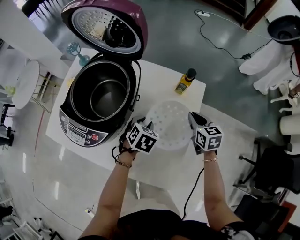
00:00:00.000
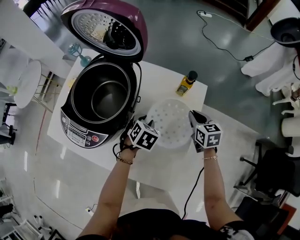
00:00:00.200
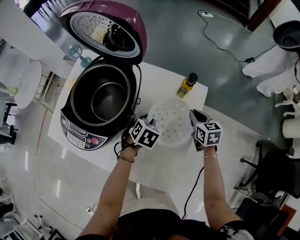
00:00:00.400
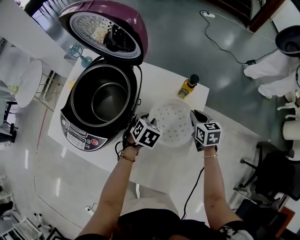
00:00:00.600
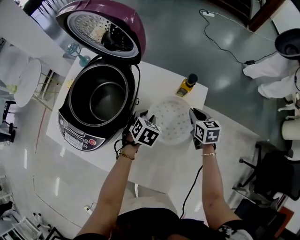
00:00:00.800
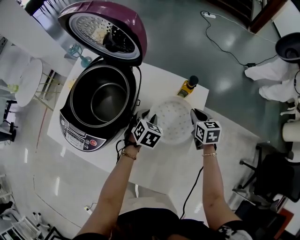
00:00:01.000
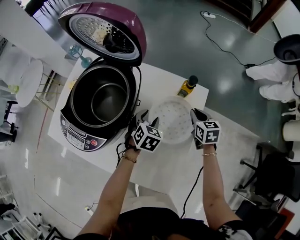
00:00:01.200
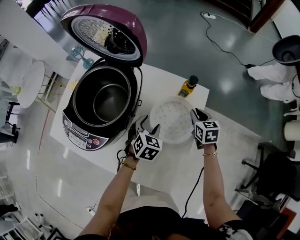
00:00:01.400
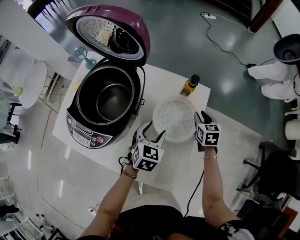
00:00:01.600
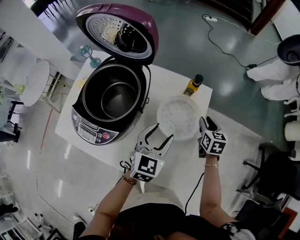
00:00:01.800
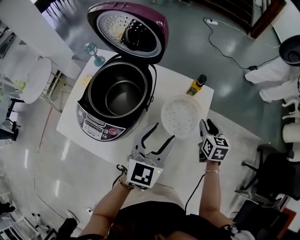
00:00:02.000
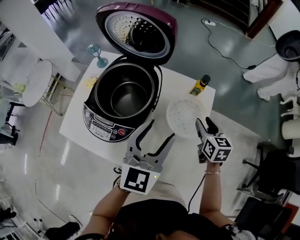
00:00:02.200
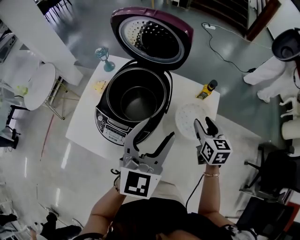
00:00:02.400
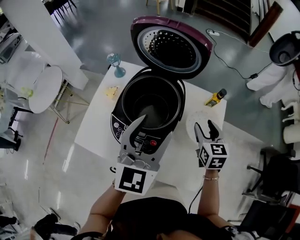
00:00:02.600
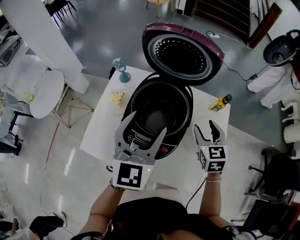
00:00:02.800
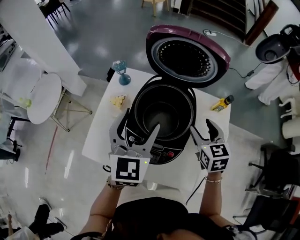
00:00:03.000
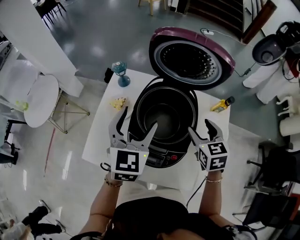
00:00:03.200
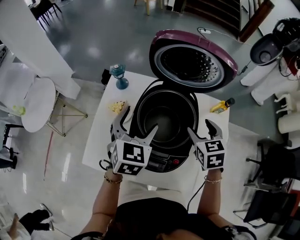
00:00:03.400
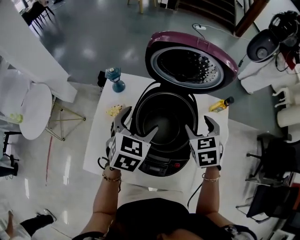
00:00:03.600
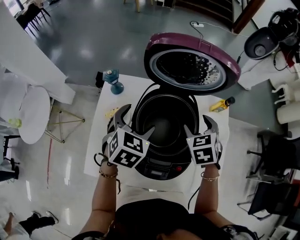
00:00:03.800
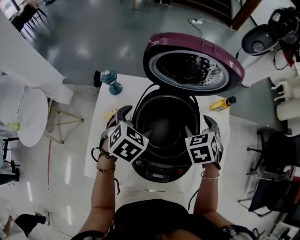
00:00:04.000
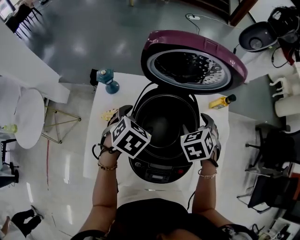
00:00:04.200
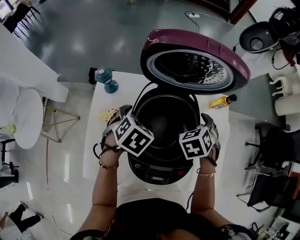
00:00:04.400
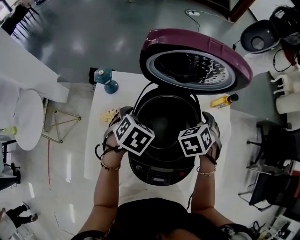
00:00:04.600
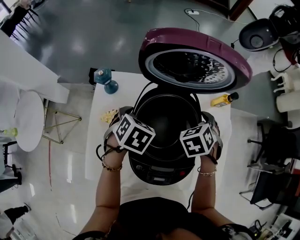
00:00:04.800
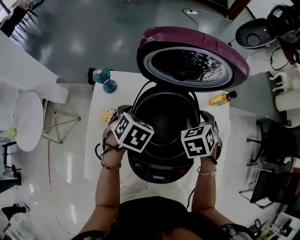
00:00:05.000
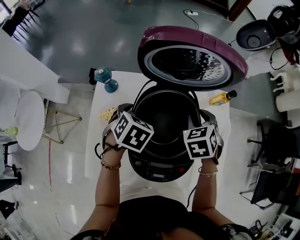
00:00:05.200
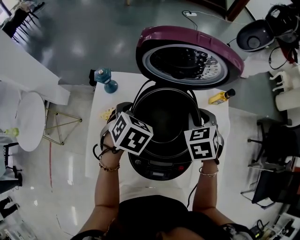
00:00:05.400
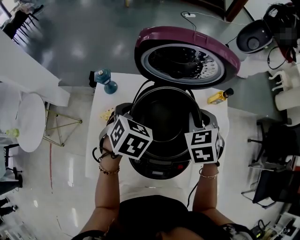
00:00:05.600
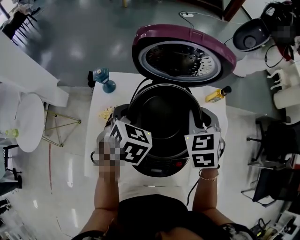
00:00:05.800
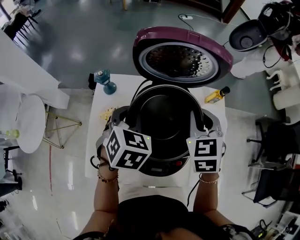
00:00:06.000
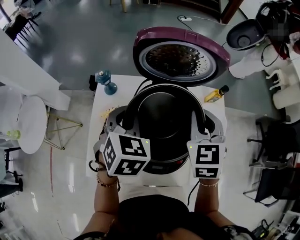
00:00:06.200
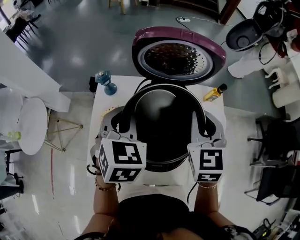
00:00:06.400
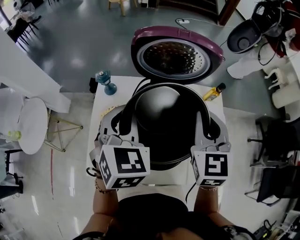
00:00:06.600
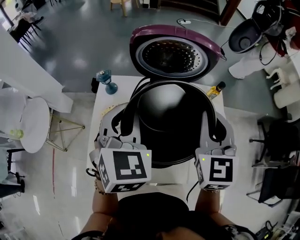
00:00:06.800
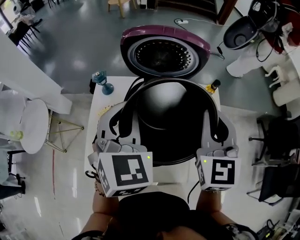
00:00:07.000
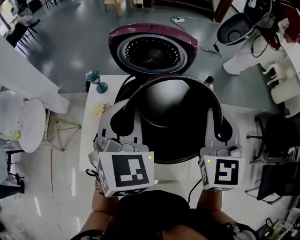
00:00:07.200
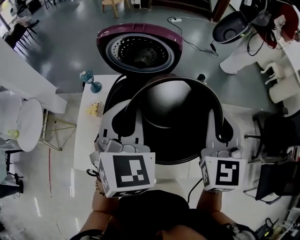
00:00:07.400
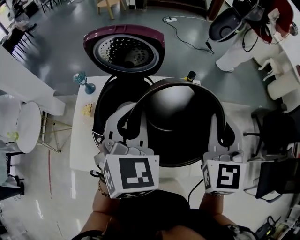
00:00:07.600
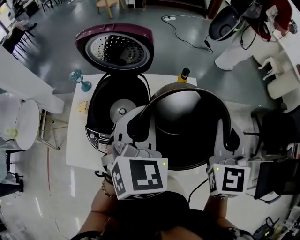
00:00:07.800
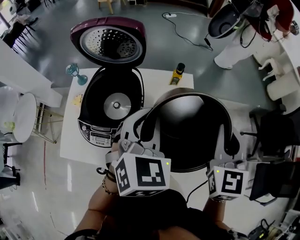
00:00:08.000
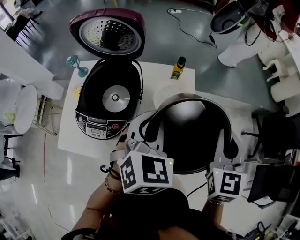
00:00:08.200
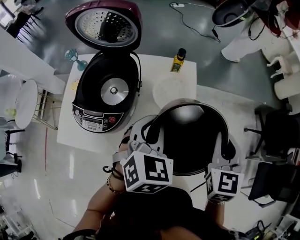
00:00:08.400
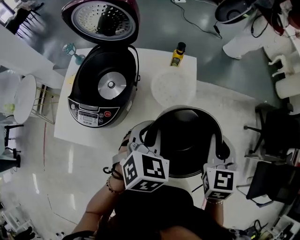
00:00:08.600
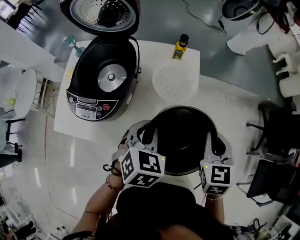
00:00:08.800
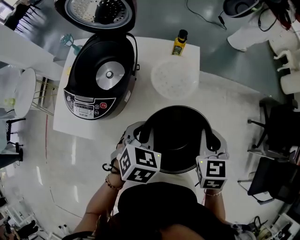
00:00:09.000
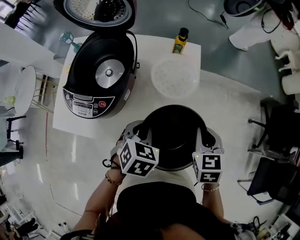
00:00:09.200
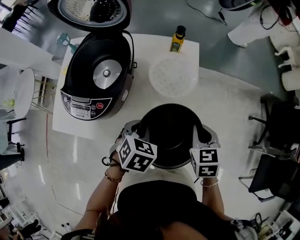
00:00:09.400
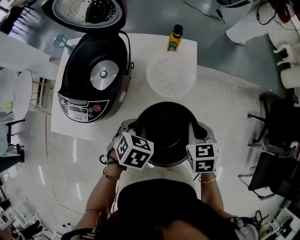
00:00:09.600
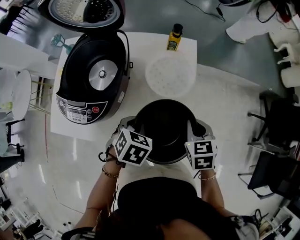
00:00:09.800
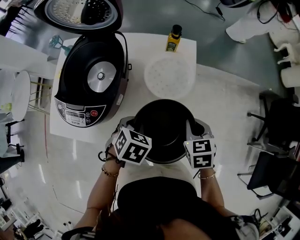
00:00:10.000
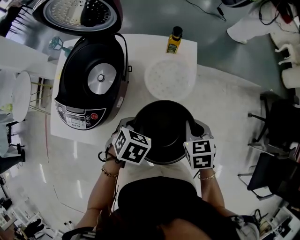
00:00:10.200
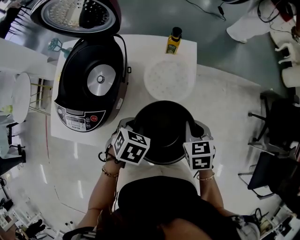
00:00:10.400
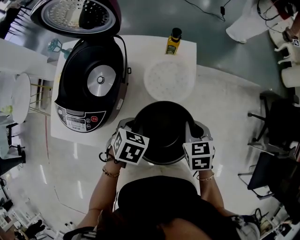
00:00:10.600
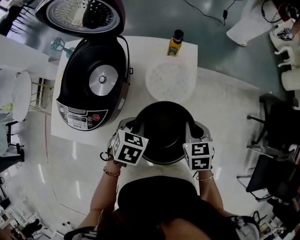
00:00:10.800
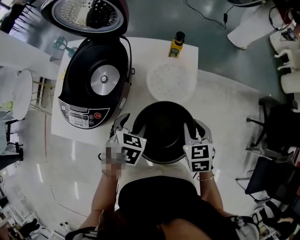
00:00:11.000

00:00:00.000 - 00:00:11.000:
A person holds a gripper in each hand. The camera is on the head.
00:00:00.000 - 00:00:01.600: The left gripper moves about 5 cm forward and comes back, while the right gripper shifts by about 5 cm.
00:00:01.600 - 00:00:03.200: Both grippers travel together to the left and upward, about 35 cm. The right gripper opens its fingers. Meanwhile the left gripper changes its angle by about 20 degrees.
00:00:03.200 - 00:00:04.800: The right gripper ends up approximately 10 cm from where it was, and rotates roughly 40 degrees. The left gripper moves downward, about 15 cm, and angles its fingers downward, by some 40 degrees.
00:00:04.800 - 00:00:06.200: Both grippers travel together upward, roughly 15 cm. The left gripper changes its angle by roughly 20 degrees, and closes its fingers. Meanwhile the right gripper tilts its fingers some 30 degrees upward, and closes its fingers.
00:00:06.200 - 00:00:07.800: The right gripper is displaced to the right and backward by approximately 30 cm; the left gripper goes about 25 cm to the right and upward.
00:00:07.800 - 00:00:09.400: The grippers both shift downward by roughly 30 cm. The left gripper tips its fingers downward by about 40 degrees, while the right gripper tilts its fingers roughly 40 degrees downward.
00:00:09.400 - 00:00:11.000: The left gripper shifts by approximately 5 cm, and opens its fingers.

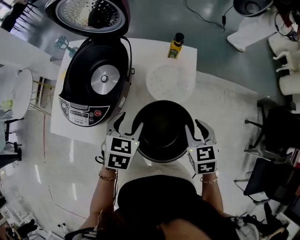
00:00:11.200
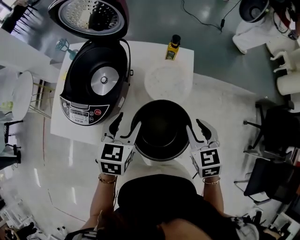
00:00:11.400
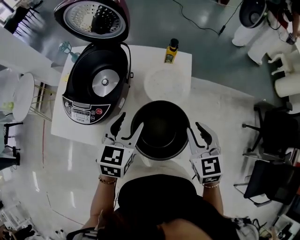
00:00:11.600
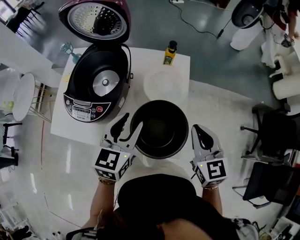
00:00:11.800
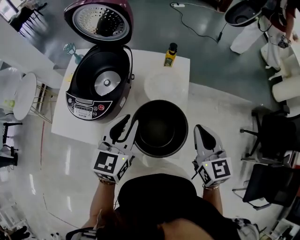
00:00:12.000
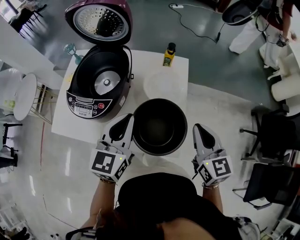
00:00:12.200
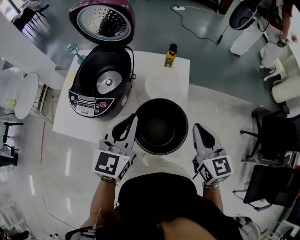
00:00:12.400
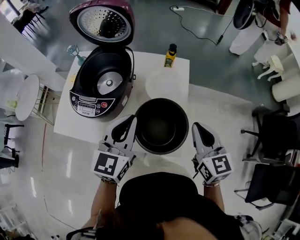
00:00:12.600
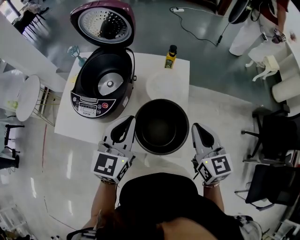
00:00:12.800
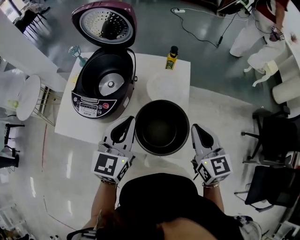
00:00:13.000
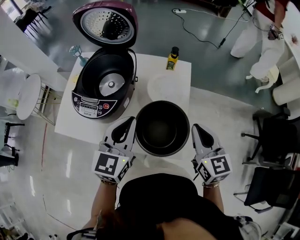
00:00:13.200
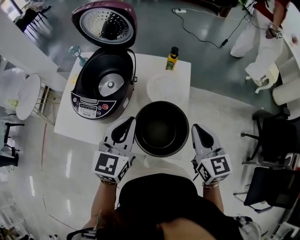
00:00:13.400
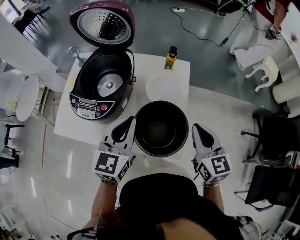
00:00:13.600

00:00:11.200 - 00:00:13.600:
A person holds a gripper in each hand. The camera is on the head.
00:00:11.200 - 00:00:12.400: The grippers both shift upward by approximately 15 cm. The left gripper points its fingers approximately 40 degrees further upward, and closes its fingers. The right gripper swivels about 30 degrees.
00:00:12.400 - 00:00:13.600: The grippers stay close to where they were, moving slightly.

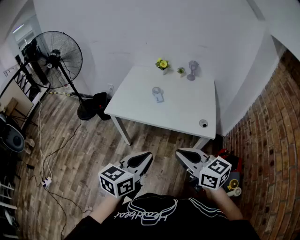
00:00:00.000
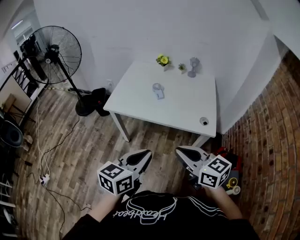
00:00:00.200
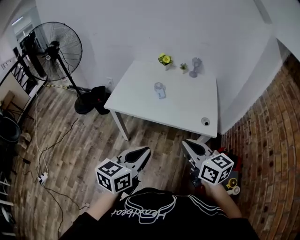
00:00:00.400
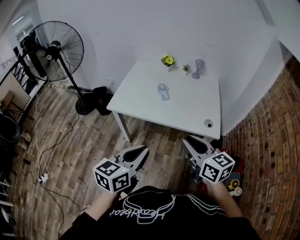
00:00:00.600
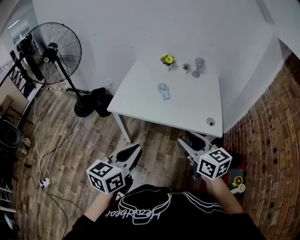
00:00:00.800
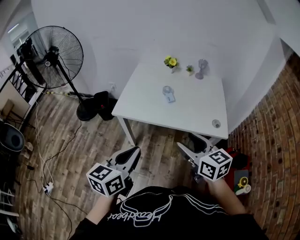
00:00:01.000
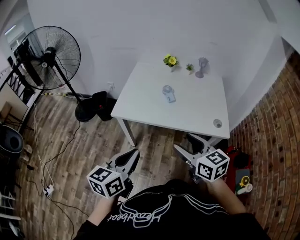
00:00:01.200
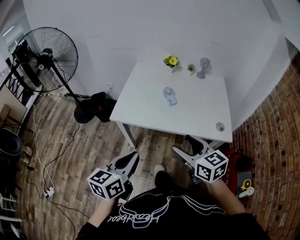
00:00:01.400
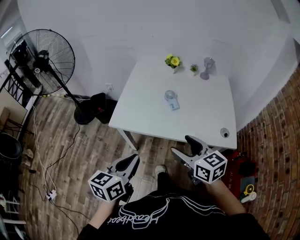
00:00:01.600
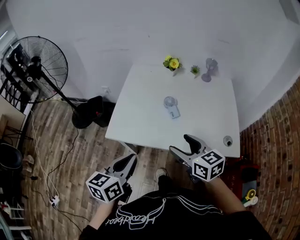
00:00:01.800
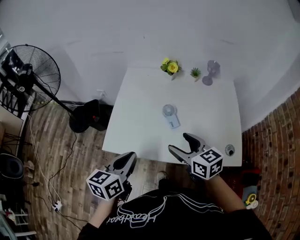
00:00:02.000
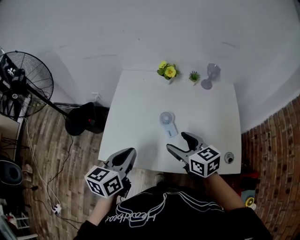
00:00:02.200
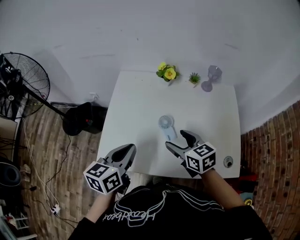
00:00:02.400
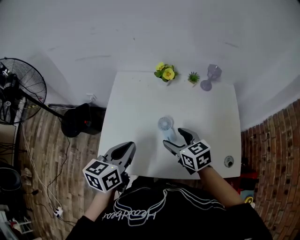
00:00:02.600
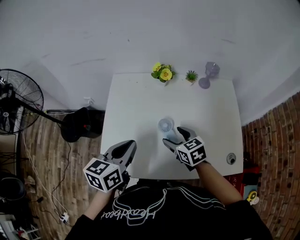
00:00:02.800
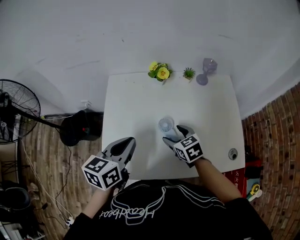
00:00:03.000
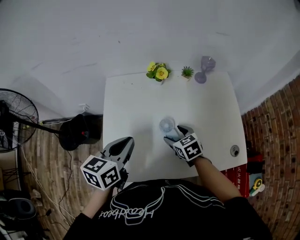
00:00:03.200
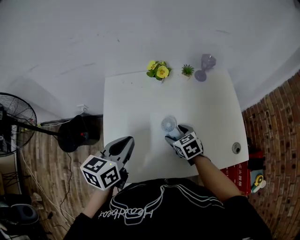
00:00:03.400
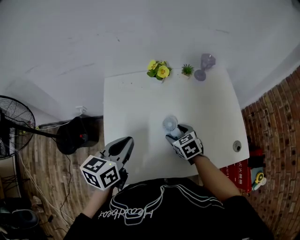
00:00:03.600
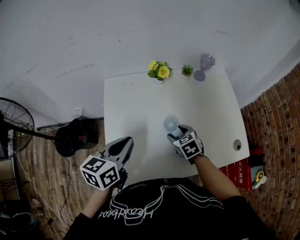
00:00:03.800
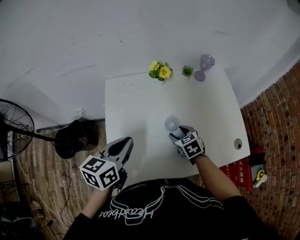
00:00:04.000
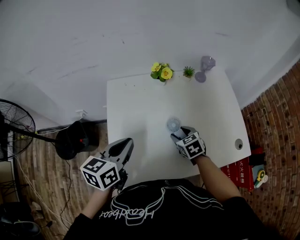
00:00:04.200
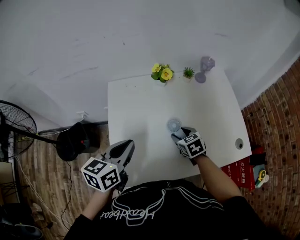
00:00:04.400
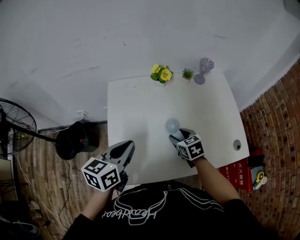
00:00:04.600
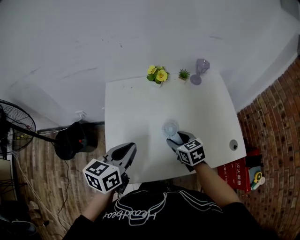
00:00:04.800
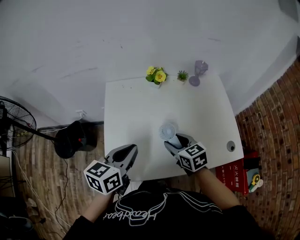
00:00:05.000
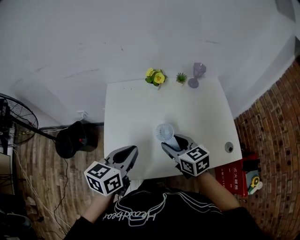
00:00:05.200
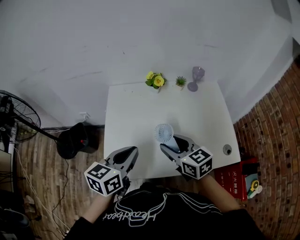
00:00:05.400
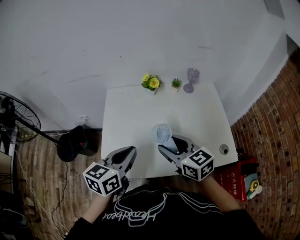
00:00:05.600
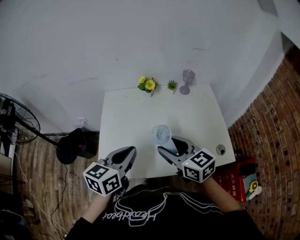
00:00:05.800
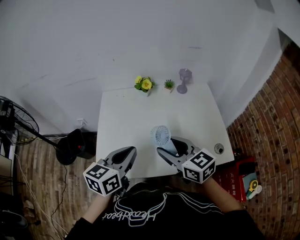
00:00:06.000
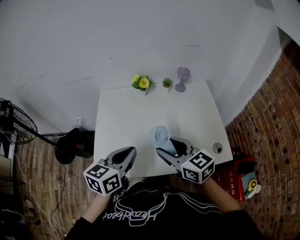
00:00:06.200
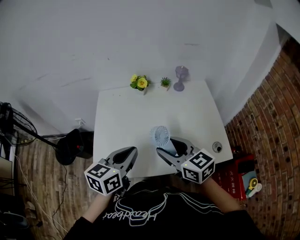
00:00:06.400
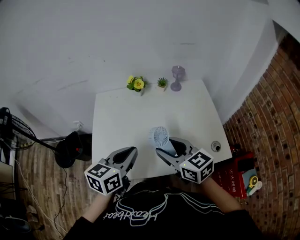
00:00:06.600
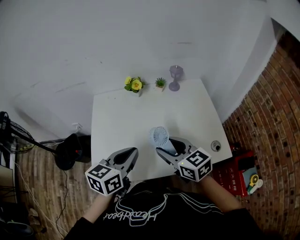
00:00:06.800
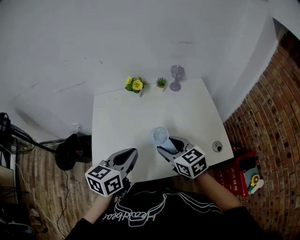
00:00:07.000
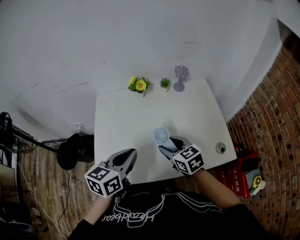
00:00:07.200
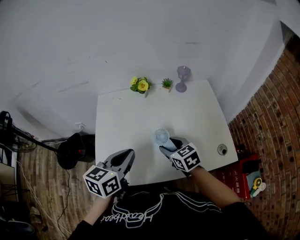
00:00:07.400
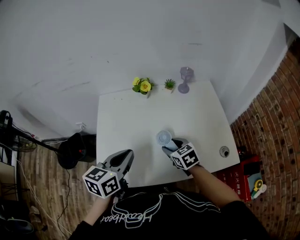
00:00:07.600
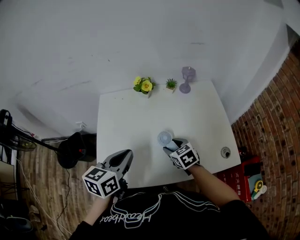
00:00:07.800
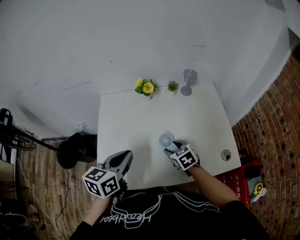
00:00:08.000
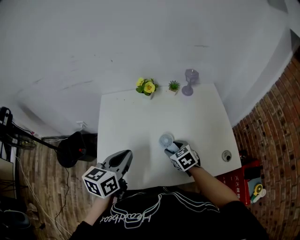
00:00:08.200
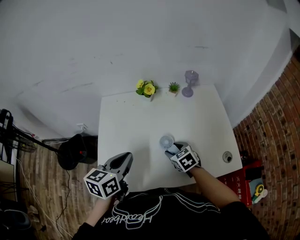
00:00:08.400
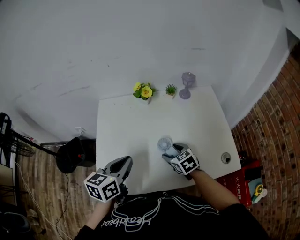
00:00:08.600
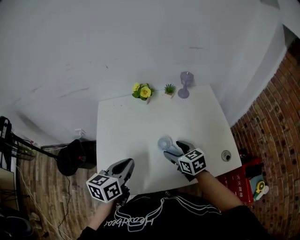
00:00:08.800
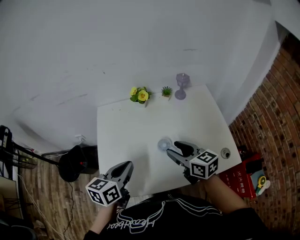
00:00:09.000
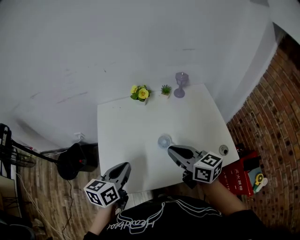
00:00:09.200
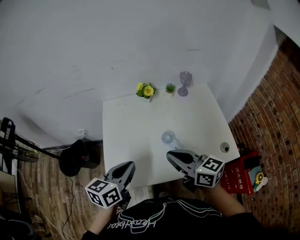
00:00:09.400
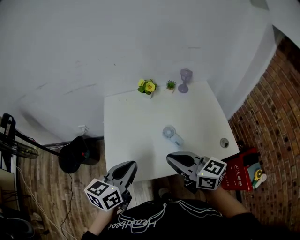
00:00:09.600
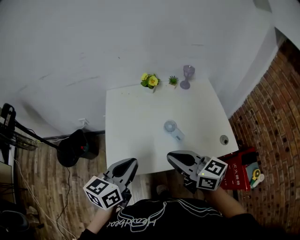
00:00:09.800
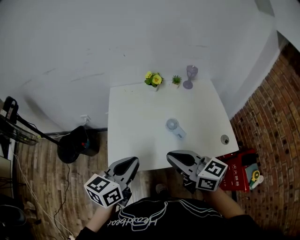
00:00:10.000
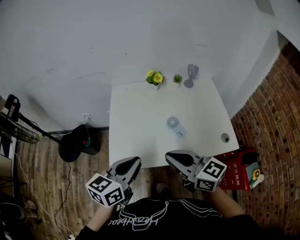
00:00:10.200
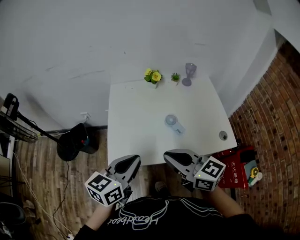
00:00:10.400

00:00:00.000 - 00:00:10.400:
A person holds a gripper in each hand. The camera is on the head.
00:00:00.000 - 00:00:01.400: The left gripper is displaced to the left and forward by about 20 cm. Meanwhile the right gripper goes about 15 cm forward and to the left, and opens.
00:00:01.400 - 00:00:03.000: The right gripper heads forward and downward, covering some 40 cm, and changes its angle by some 30 degrees; the left gripper moves forward, approximately 40 cm.
00:00:03.000 - 00:00:04.400: The right gripper closes up. The left gripper is displaced to the left by roughly 5 cm.
00:00:04.400 - 00:00:06.000: The left gripper goes approximately 15 cm to the right and backward. Meanwhile the right gripper shifts roughly 25 cm upward and backward, and angles its fingers upward, by some 30 degrees.
00:00:06.000 - 00:00:07.400: The right gripper moves downward and forward, about 15 cm, and swivels about 20 degrees.
00:00:07.400 - 00:00:09.000: The right gripper goes about 5 cm upward, and rotates roughly 20 degrees.
00:00:09.000 - 00:00:10.400: The right gripper heads backward, to the left and upward, covering some 25 cm, and closes up, while the left gripper shifts some 15 cm backward and upward.
